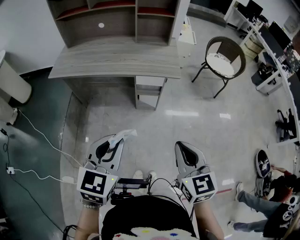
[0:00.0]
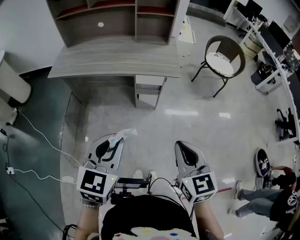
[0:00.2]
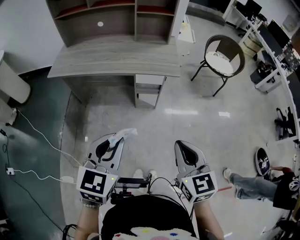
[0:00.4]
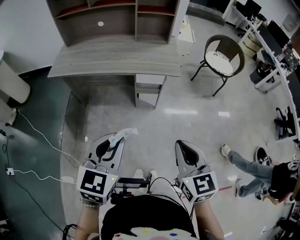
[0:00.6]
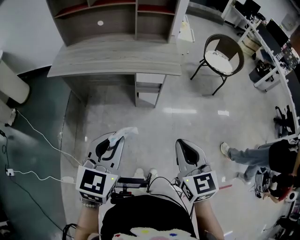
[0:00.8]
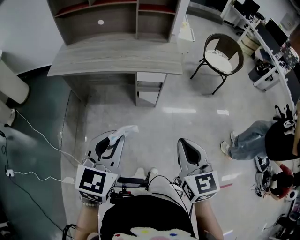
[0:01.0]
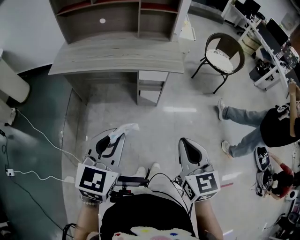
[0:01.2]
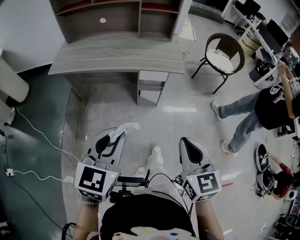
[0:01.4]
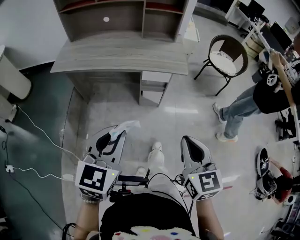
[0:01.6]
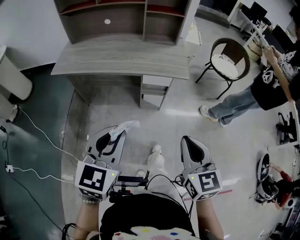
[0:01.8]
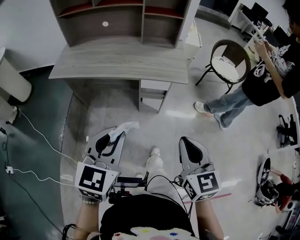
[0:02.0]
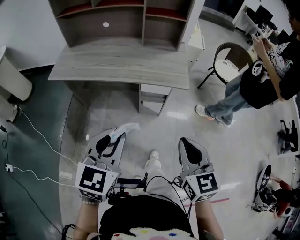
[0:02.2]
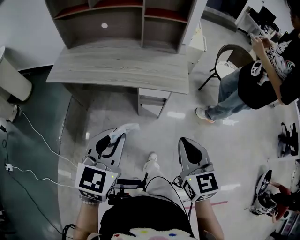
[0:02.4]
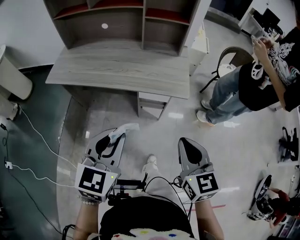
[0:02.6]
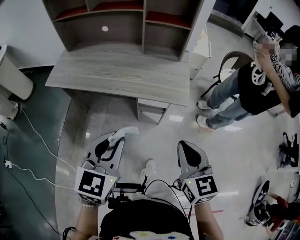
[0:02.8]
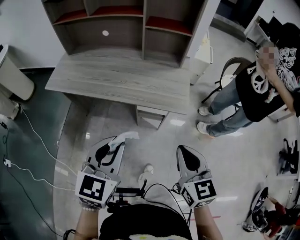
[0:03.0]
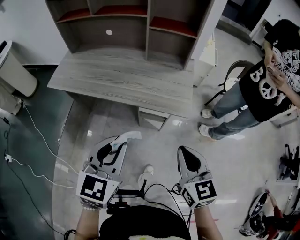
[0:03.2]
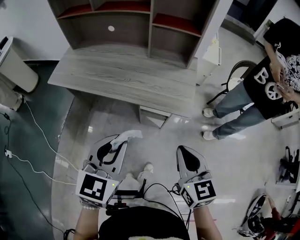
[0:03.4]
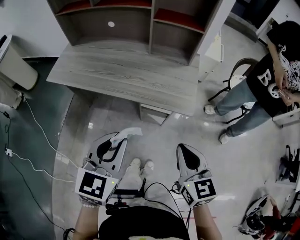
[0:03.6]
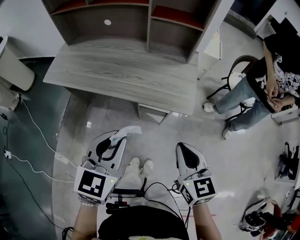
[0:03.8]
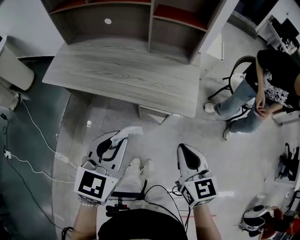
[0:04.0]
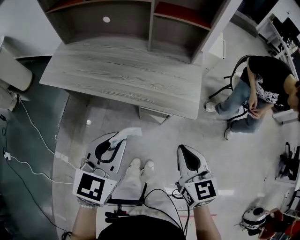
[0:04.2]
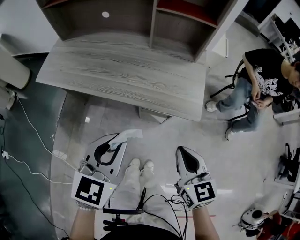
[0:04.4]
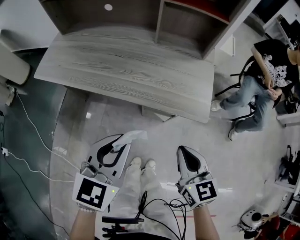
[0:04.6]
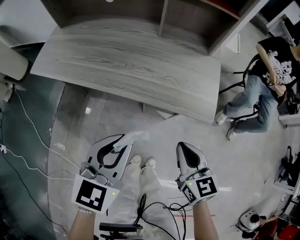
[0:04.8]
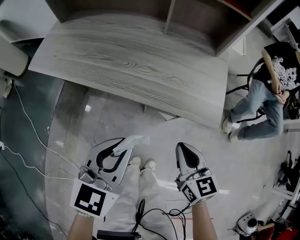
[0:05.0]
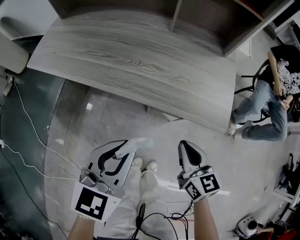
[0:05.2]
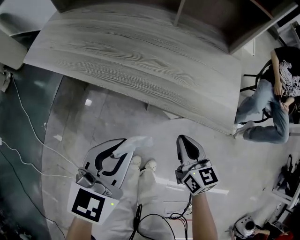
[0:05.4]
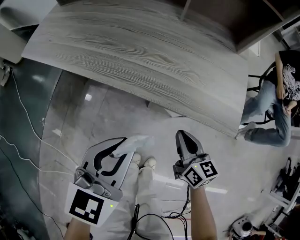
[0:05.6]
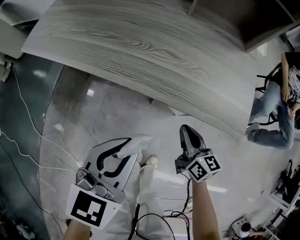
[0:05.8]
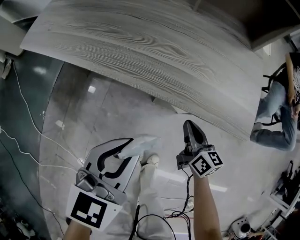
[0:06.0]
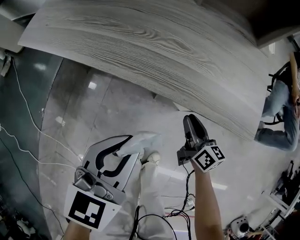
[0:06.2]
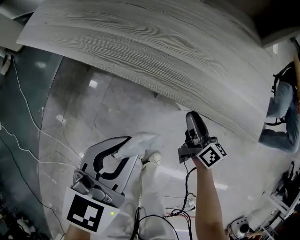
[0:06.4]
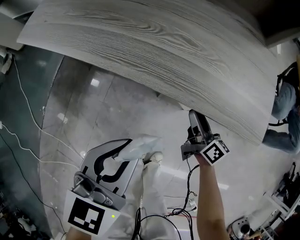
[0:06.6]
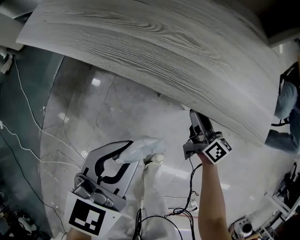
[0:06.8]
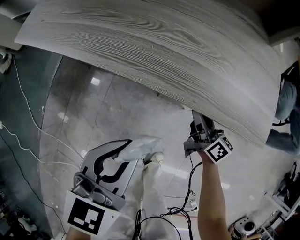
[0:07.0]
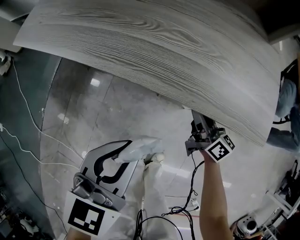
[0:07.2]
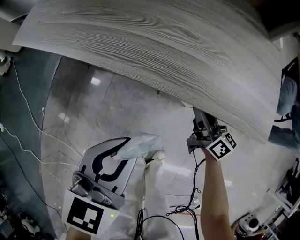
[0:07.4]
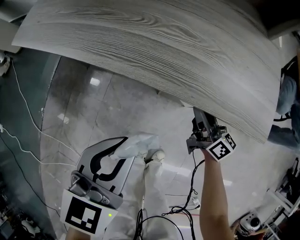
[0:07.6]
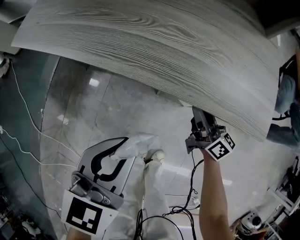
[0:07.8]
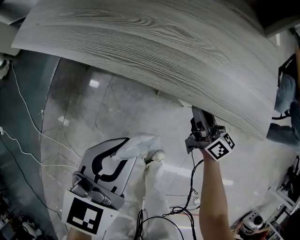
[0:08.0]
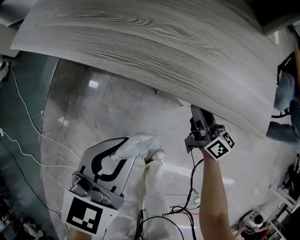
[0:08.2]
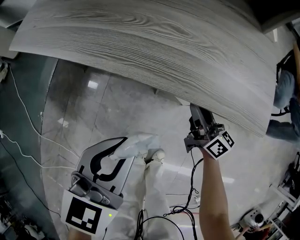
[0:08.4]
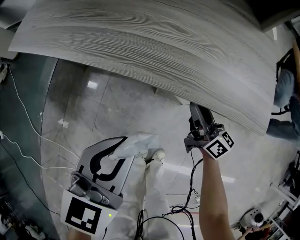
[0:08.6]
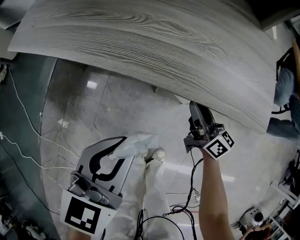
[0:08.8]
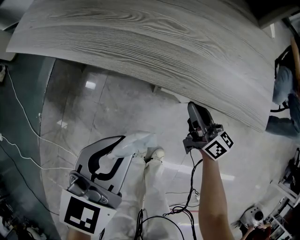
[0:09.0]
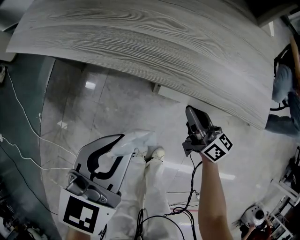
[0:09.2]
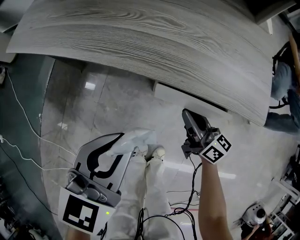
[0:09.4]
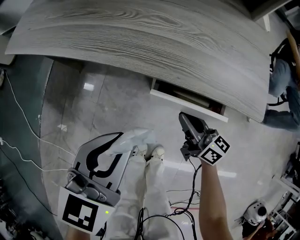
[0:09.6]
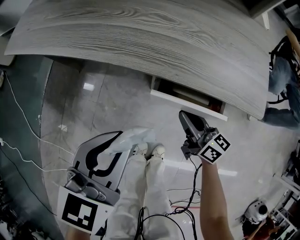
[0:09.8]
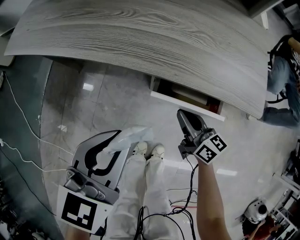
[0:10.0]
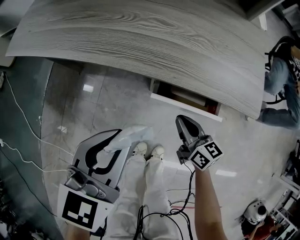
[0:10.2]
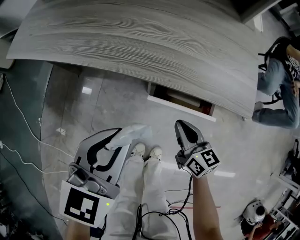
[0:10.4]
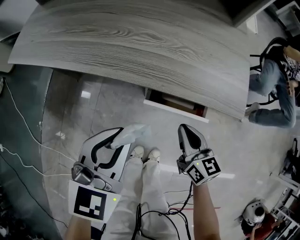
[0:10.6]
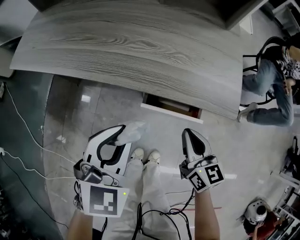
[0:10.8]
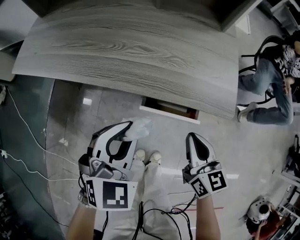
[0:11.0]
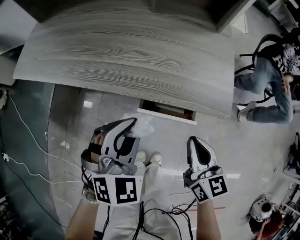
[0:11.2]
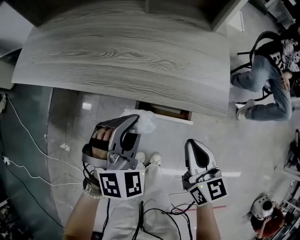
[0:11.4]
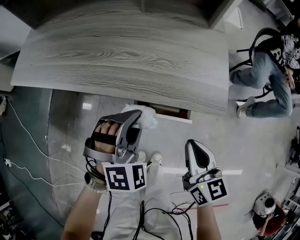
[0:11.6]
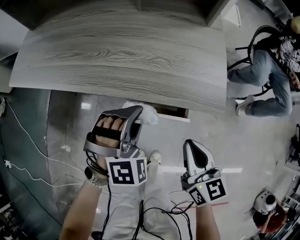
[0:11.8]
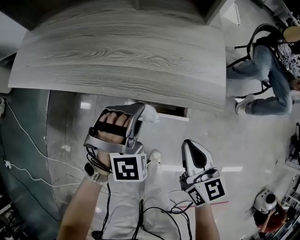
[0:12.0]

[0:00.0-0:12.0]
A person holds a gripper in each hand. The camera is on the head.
0:00.0 to 0:01.6: The grippers move only a little.
0:01.6 to 0:03.0: The two grippers go some 20 cm forward.
0:03.0 to 0:04.4: The right gripper shifts about 15 cm downward and forward; the left gripper shifts approximately 10 cm forward and downward.
0:04.4 to 0:06.0: The right gripper goes some 35 cm downward and forward, and rotates approximately 30 degrees. The left gripper goes about 20 cm downward.
0:06.0 to 0:07.6: The right gripper moves roughly 5 cm, rotates some 20 degrees, and opens its fingers.
0:07.6 to 0:09.0: There are only small adjustments of the grippers.
0:09.0 to 0:10.4: The right gripper is displaced backward by about 10 cm, and rotates about 20 degrees.
0:10.4 to 0:12.0: The right gripper goes some 15 cm upward and to the right. The left gripper shifts roughly 15 cm to the right and forward, and twists approximately 70 degrees clockwise, seen from behind.

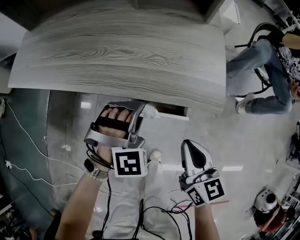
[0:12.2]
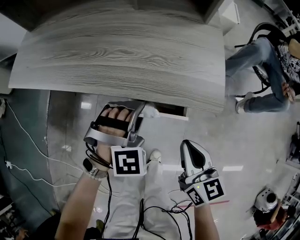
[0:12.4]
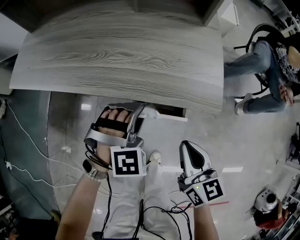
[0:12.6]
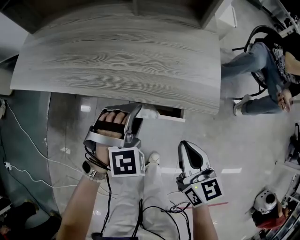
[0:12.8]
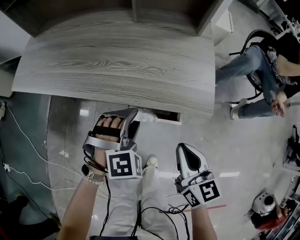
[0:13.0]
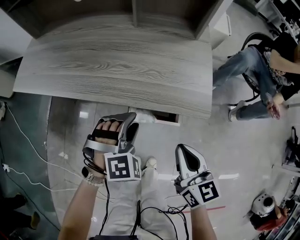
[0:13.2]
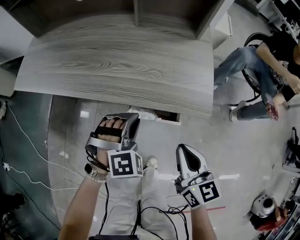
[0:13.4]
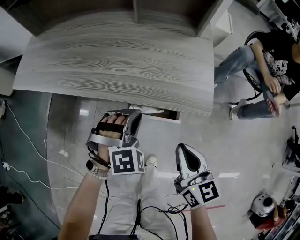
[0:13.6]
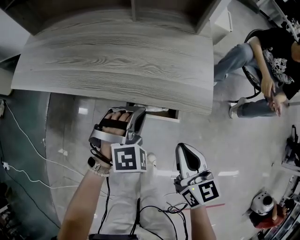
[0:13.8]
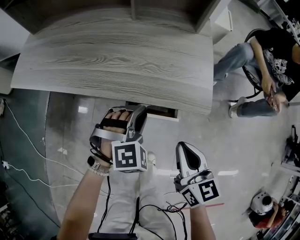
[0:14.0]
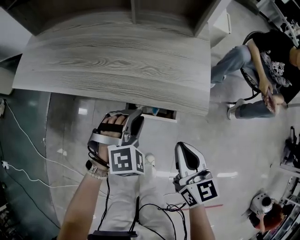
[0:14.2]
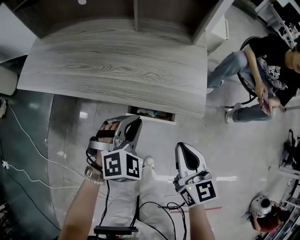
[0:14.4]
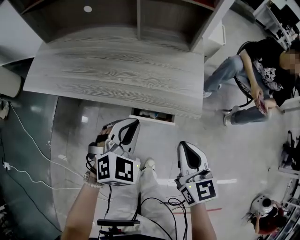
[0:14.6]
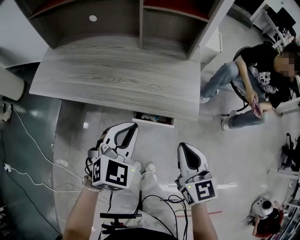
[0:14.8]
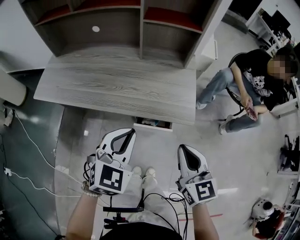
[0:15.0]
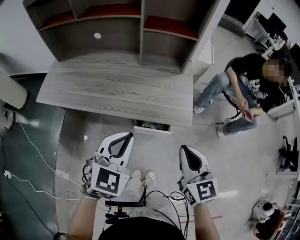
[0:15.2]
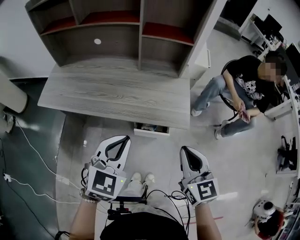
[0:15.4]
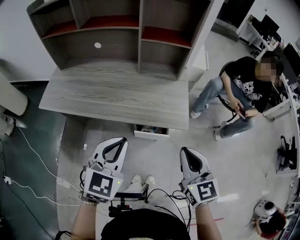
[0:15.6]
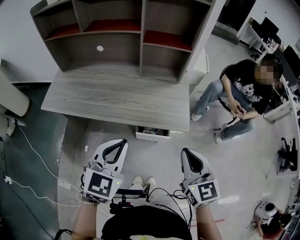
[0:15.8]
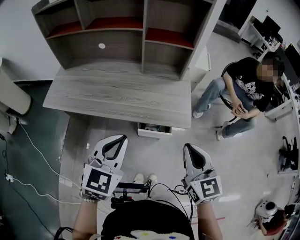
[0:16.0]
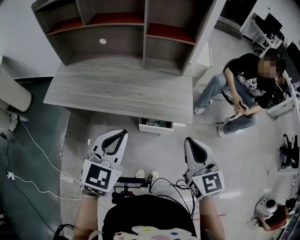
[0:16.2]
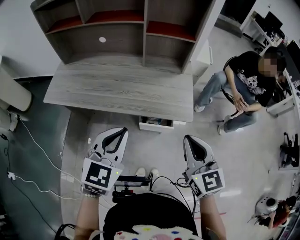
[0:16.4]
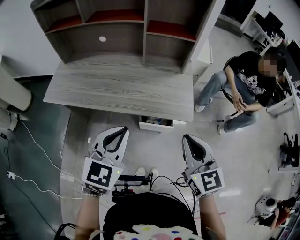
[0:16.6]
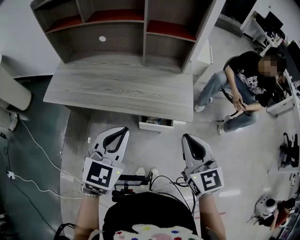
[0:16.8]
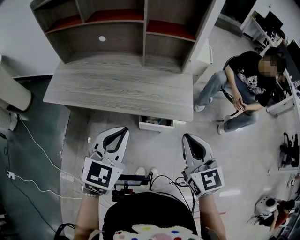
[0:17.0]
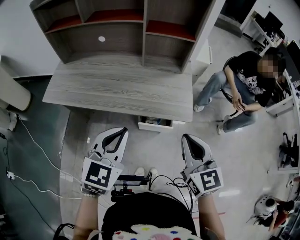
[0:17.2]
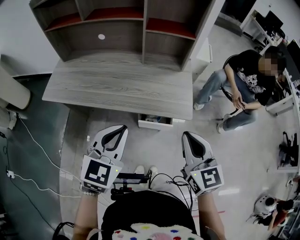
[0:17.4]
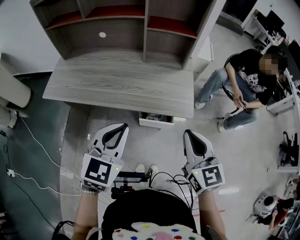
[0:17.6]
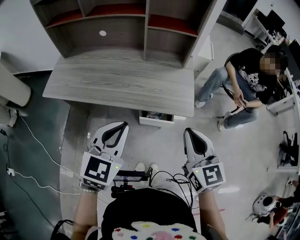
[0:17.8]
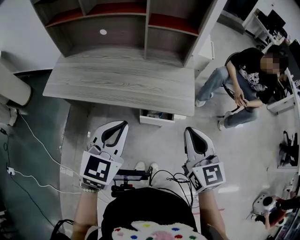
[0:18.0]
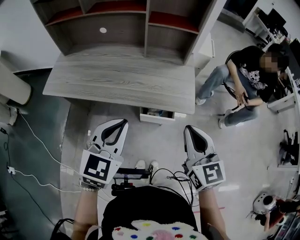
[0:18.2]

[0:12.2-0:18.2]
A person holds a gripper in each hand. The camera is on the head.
0:12.2 to 0:13.8: The left gripper opens, then closes once more.
0:13.8 to 0:15.2: Both grippers travel together upward, about 25 cm. The left gripper rolls counterclockwise, seen from behind, by roughly 40 degrees.
0:15.2 to 0:16.6: The two grippers go roughly 5 cm upward.
0:16.6 to 0:18.2: Both grippers stay about where they are.

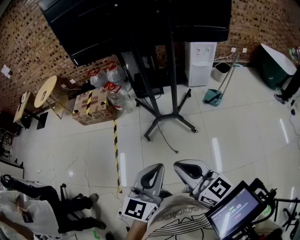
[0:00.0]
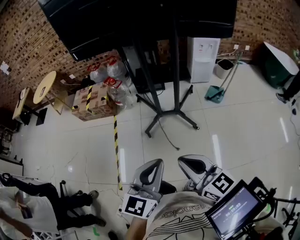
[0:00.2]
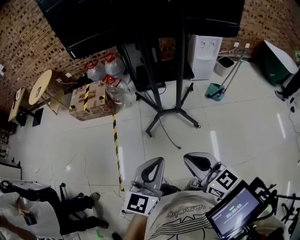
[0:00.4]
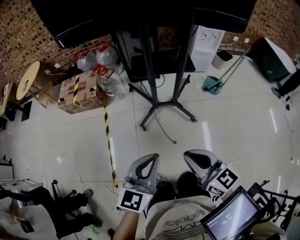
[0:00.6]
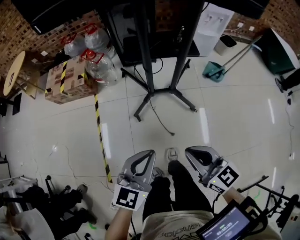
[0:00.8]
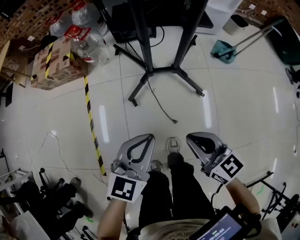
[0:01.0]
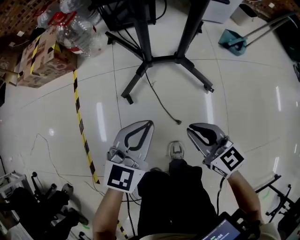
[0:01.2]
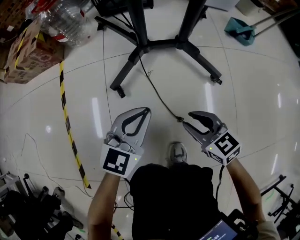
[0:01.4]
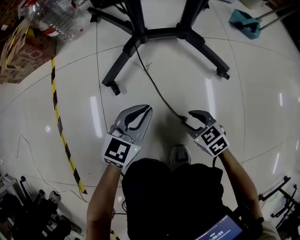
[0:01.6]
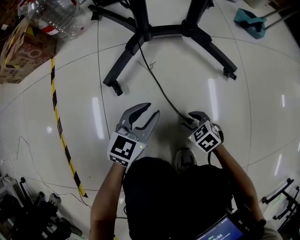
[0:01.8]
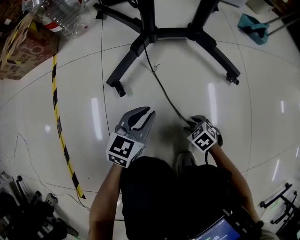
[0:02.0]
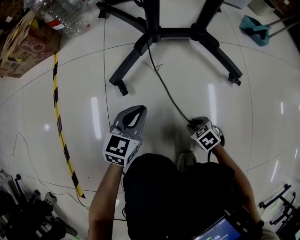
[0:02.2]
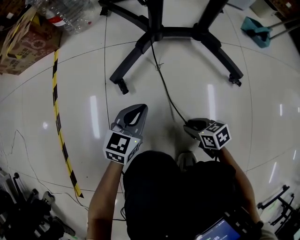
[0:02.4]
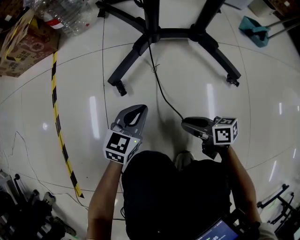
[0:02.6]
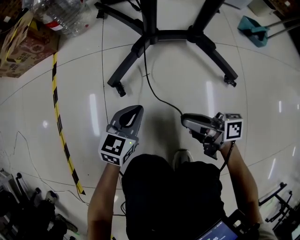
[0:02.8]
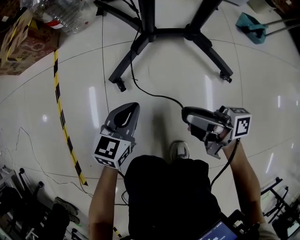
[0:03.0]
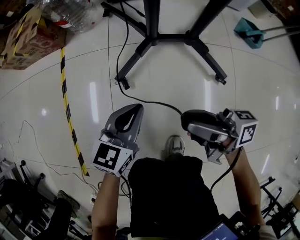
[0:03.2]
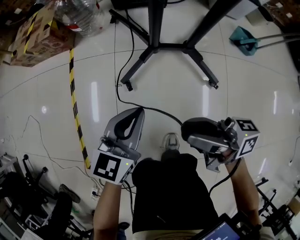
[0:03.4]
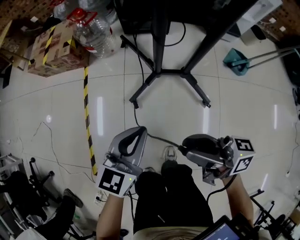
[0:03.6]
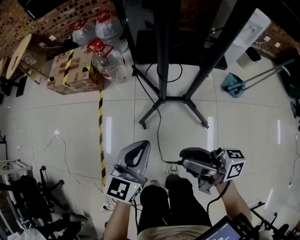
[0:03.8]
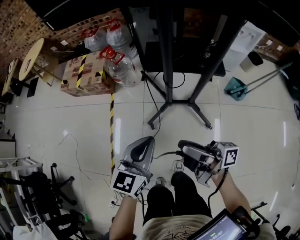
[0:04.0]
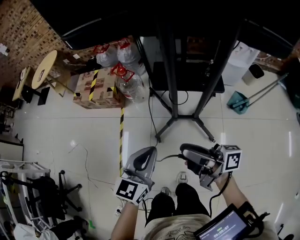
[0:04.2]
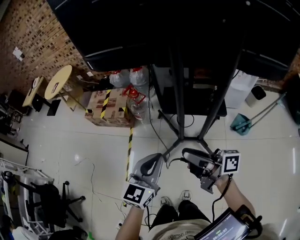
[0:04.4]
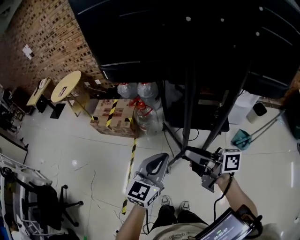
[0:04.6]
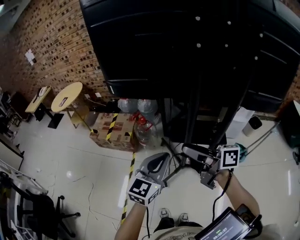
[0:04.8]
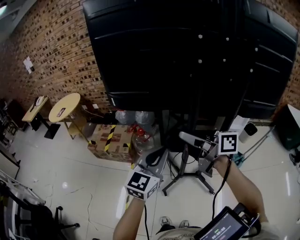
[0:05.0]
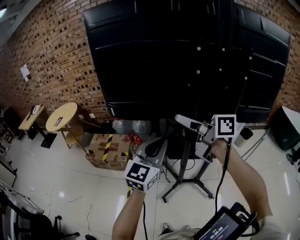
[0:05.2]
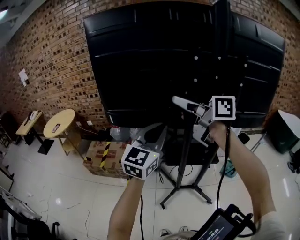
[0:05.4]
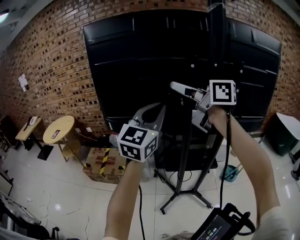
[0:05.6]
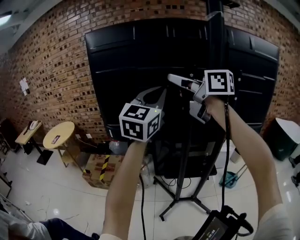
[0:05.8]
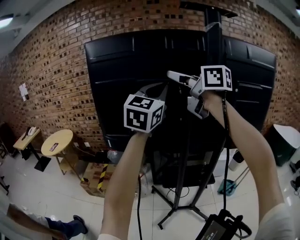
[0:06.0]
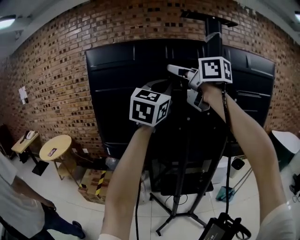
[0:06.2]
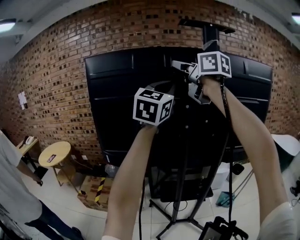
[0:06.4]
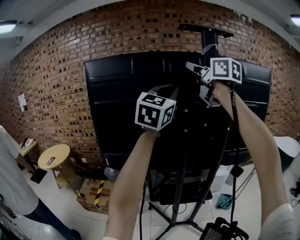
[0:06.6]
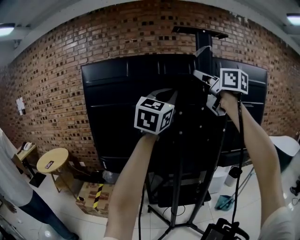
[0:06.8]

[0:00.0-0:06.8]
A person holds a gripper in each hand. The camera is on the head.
0:00.0 to 0:01.4: The right gripper heads downward, covering approximately 70 cm, tips its fingers downward by roughly 30 degrees, and opens up. The left gripper shifts approximately 70 cm downward and forward.
0:01.4 to 0:02.8: The left gripper travels downward by approximately 15 cm, and opens, then closes again. The right gripper moves some 30 cm downward and comes back, rolls clockwise, seen from behind, by about 50 degrees, and opens, then closes once more.
0:02.8 to 0:04.0: Both grippers travel together upward, roughly 60 cm. The right gripper swivels some 30 degrees.
0:04.0 to 0:05.4: Both grippers travel together upward and forward, approximately 50 cm. The left gripper changes its angle by about 30 degrees, while the right gripper rotates around the line of its fingers by approximately 50 degrees, counterclockwise from behind.
0:05.4 to 0:06.8: The left gripper heads upward, covering about 25 cm; the right gripper goes roughly 30 cm upward and to the right, and turns by about 40 degrees.
